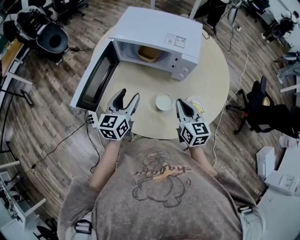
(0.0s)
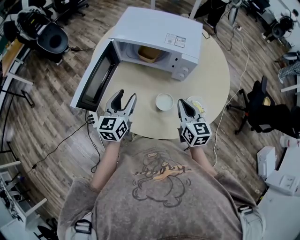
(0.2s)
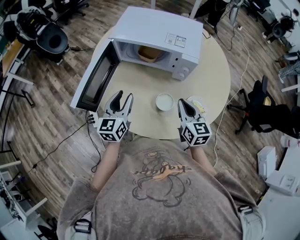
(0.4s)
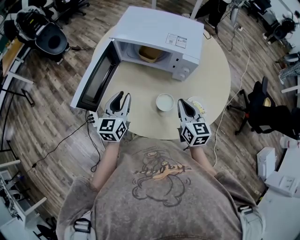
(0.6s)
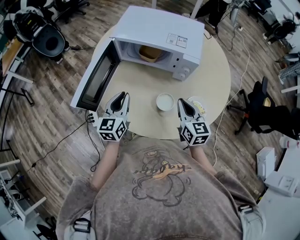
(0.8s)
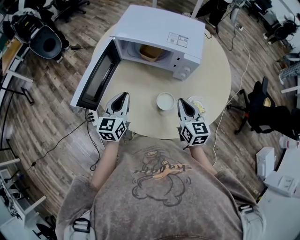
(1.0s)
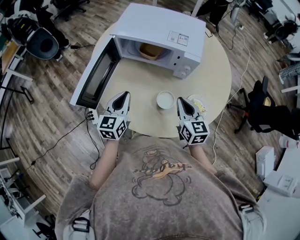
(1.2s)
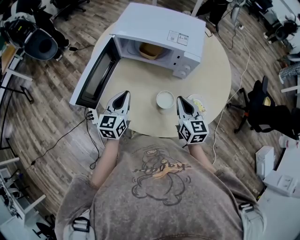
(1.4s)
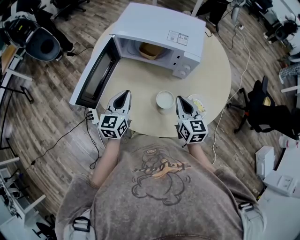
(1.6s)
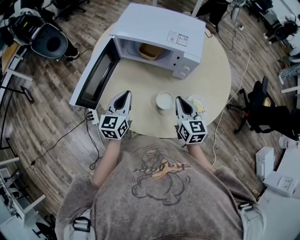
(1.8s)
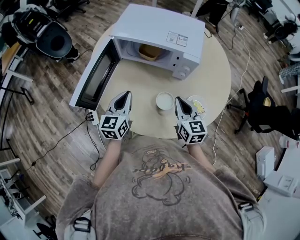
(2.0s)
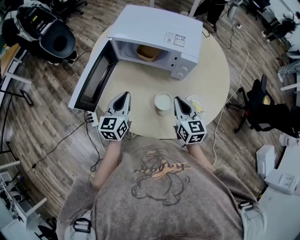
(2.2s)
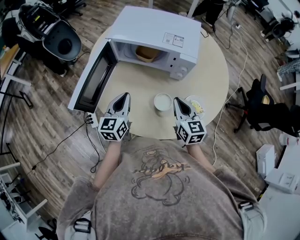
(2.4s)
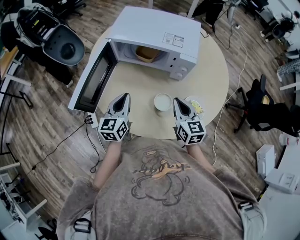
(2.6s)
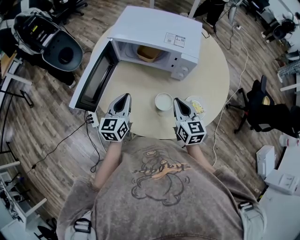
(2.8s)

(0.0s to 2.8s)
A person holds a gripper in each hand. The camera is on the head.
0.0s - 1.4s: The left gripper closes up.
1.4s - 2.8s: Neither gripper changes place.

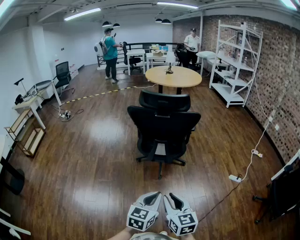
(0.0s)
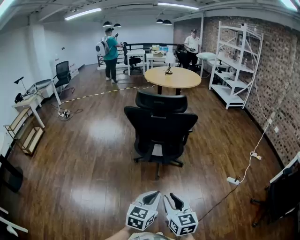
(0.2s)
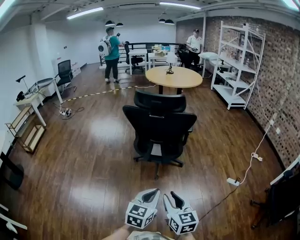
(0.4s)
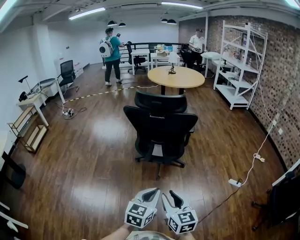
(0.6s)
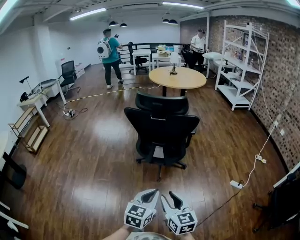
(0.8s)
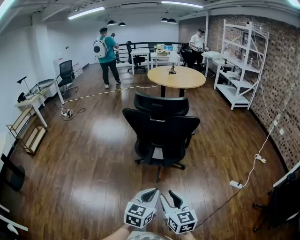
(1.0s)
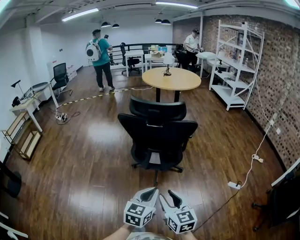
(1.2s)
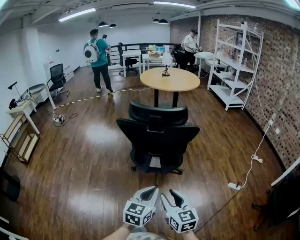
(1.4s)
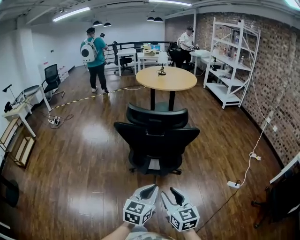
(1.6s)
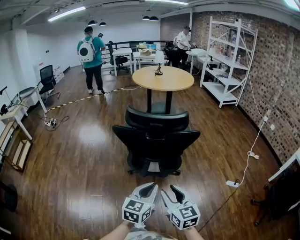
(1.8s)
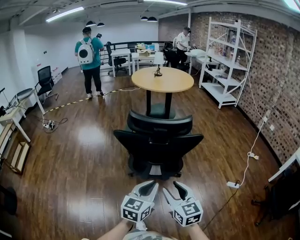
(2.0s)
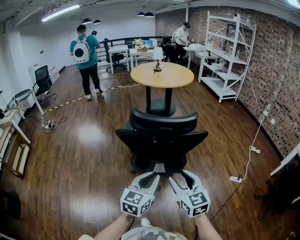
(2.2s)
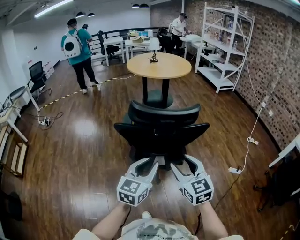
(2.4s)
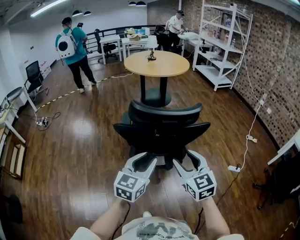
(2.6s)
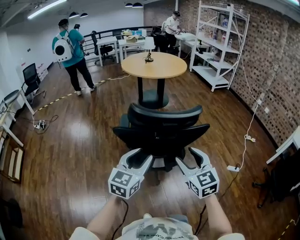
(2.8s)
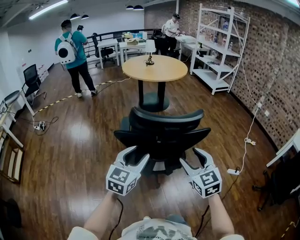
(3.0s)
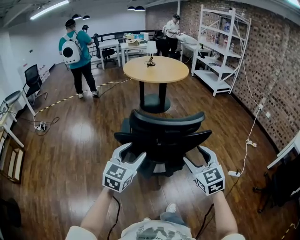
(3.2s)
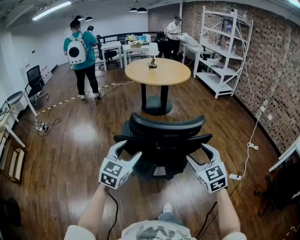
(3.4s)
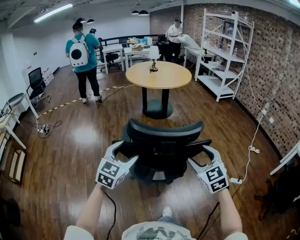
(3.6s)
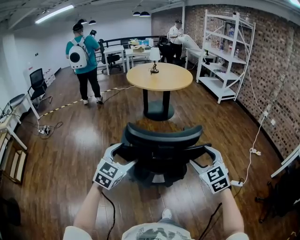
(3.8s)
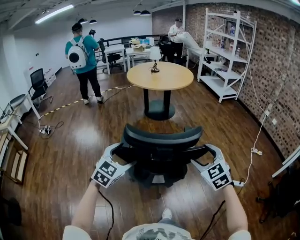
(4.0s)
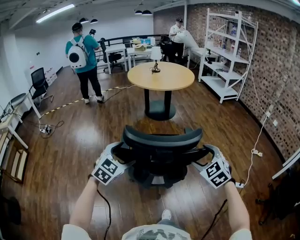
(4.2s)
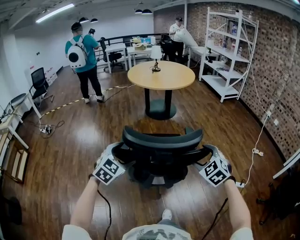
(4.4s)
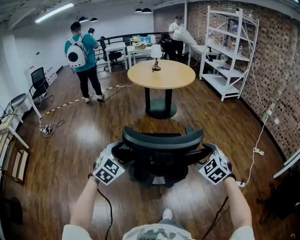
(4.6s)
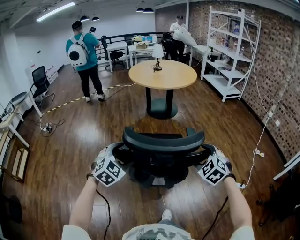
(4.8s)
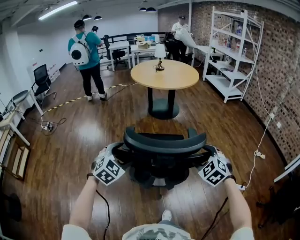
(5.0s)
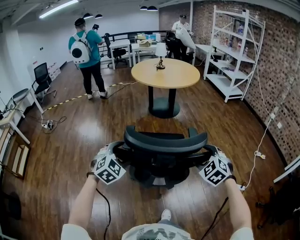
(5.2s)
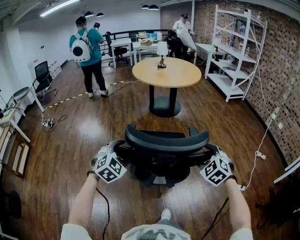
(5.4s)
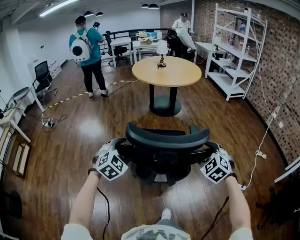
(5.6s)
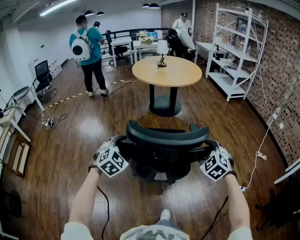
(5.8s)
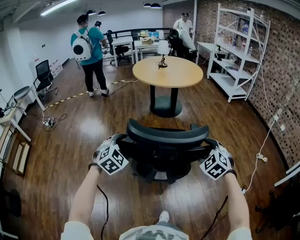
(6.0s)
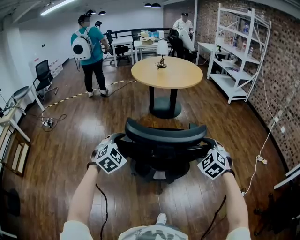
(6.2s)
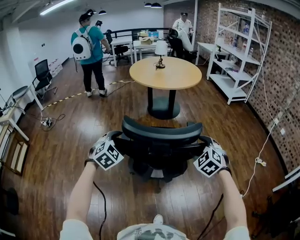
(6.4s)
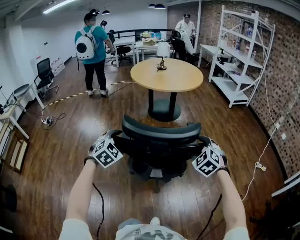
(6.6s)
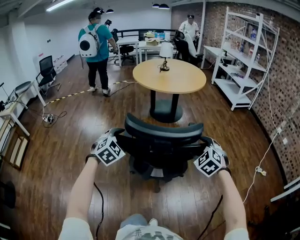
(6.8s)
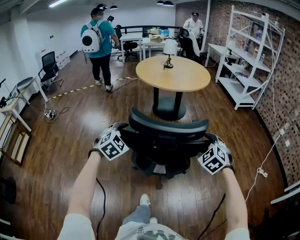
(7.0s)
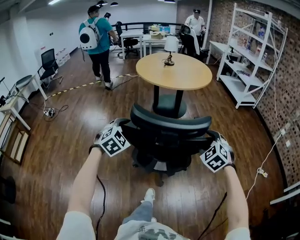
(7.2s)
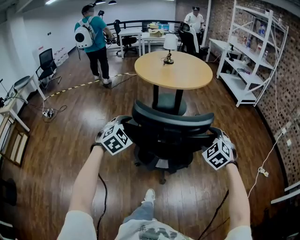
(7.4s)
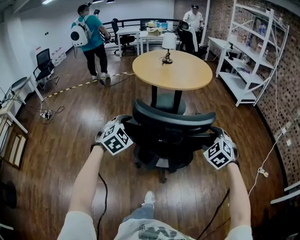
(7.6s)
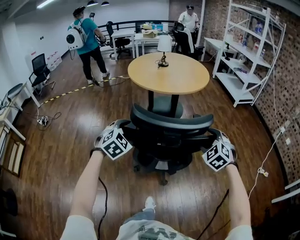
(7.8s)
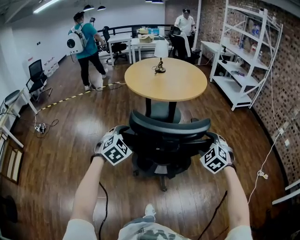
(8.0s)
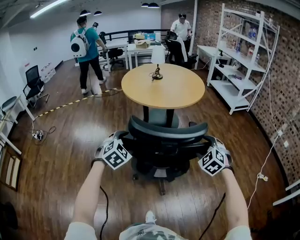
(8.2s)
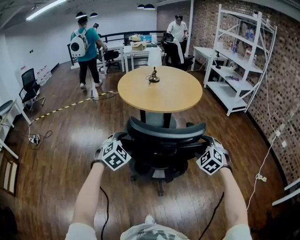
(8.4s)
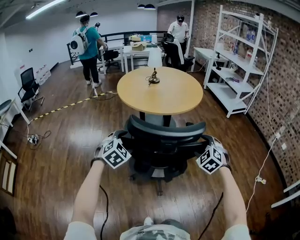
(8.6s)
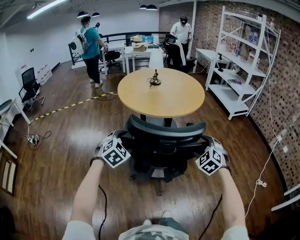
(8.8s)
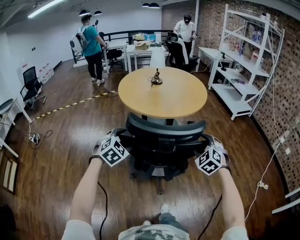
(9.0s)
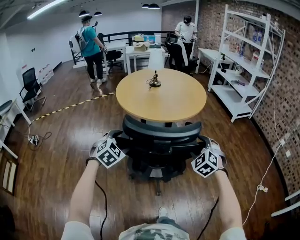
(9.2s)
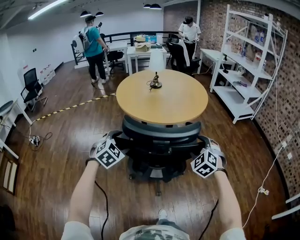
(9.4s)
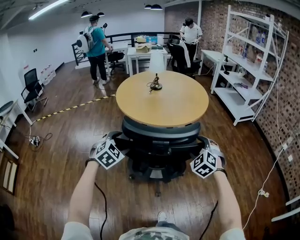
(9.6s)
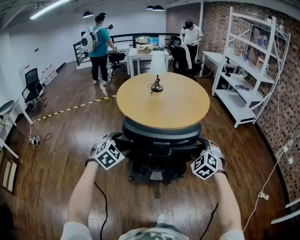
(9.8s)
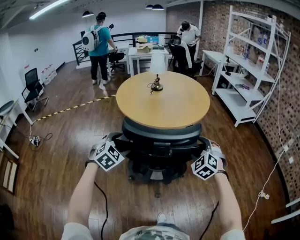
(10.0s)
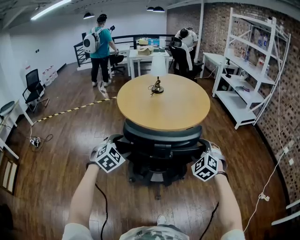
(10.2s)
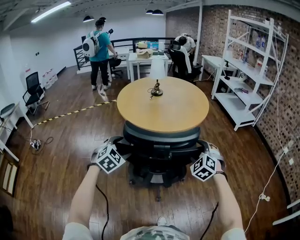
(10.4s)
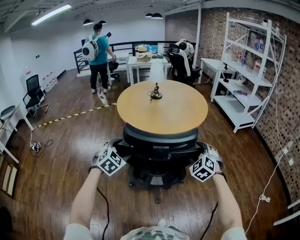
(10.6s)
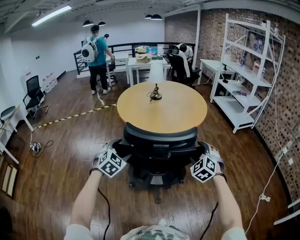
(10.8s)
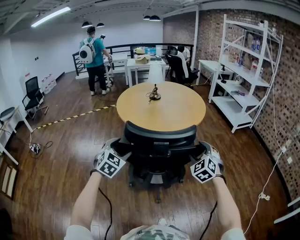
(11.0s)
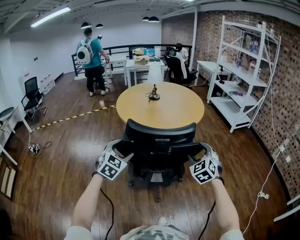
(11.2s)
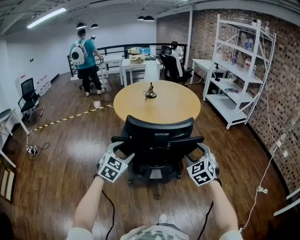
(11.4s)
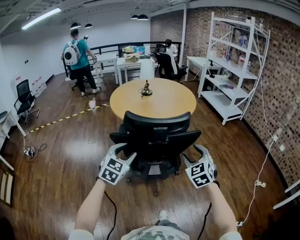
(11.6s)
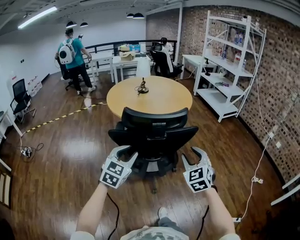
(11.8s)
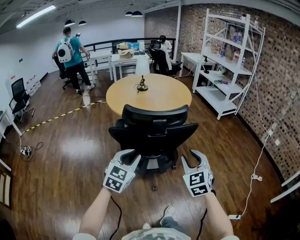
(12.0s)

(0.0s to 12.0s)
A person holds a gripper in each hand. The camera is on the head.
0.0s - 1.6s: Both grippers move forward, roughly 20 cm.
1.6s - 3.0s: The right gripper goes roughly 20 cm forward and upward, and swivels some 20 degrees. The left gripper moves forward and to the left, some 25 cm, and opens.
3.0s - 4.4s: The right gripper moves forward and to the right, roughly 15 cm, and changes its angle by roughly 30 degrees; the left gripper travels forward and to the left by approximately 10 cm, swivels about 30 degrees, and opens.
4.4s - 6.0s: Both grippers move forward, some 10 cm.
6.0s - 7.6s: Both grippers travel together forward, roughly 25 cm.
7.6s - 9.0s: Both grippers travel together forward, some 25 cm.
9.0s - 10.4s: The grippers both shift forward by approximately 10 cm.
10.4s - 12.0s: The left gripper heads backward and to the right, covering about 20 cm, turns by some 30 degrees, and closes up. Meanwhile the right gripper heads backward, covering roughly 20 cm, changes its angle by roughly 30 degrees, and closes its fingers.

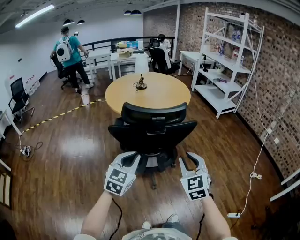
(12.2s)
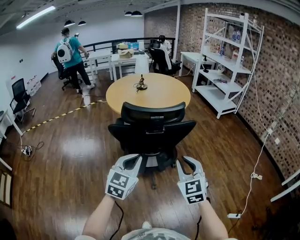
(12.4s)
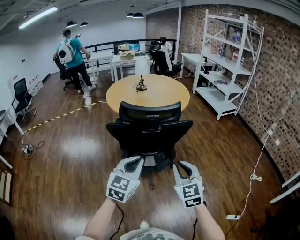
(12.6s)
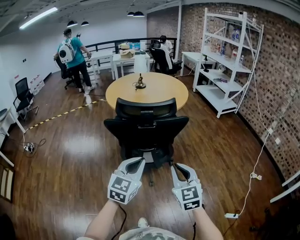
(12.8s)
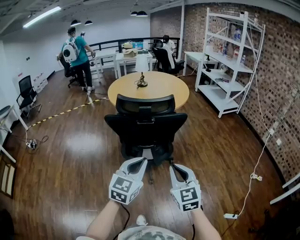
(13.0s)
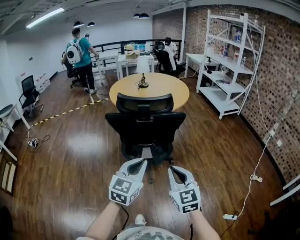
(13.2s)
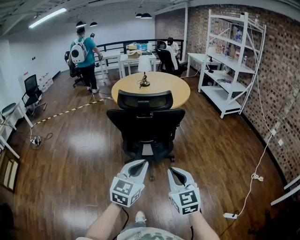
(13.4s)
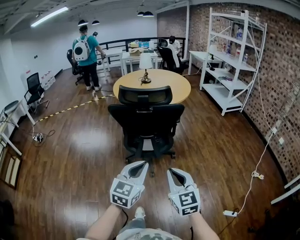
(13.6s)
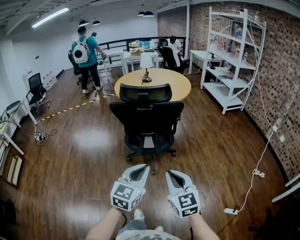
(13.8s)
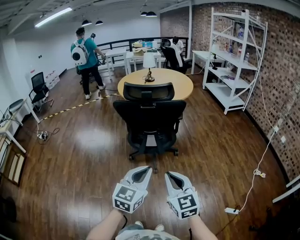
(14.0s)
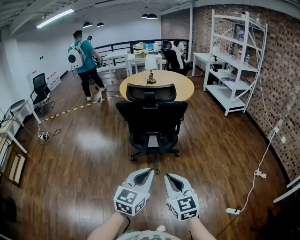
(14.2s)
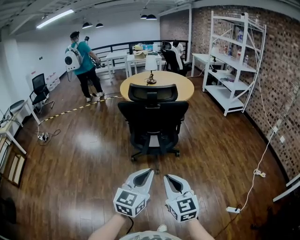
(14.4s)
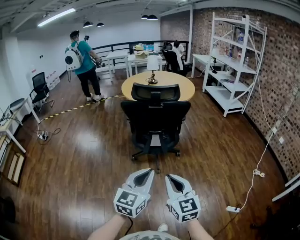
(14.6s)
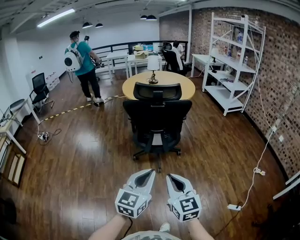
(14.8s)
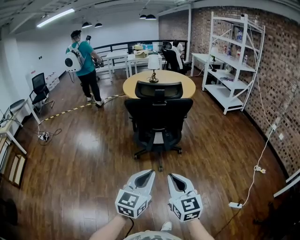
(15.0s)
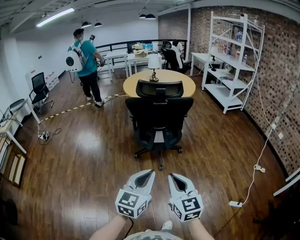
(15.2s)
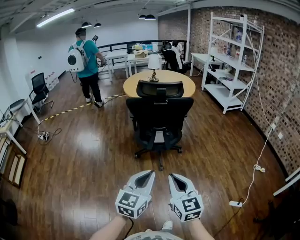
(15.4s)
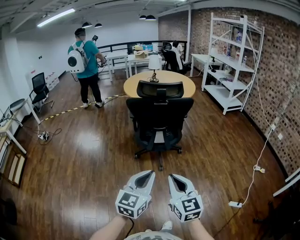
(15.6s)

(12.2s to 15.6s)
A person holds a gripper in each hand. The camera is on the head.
12.2s - 13.8s: The right gripper is displaced backward by some 25 cm, and swivels about 20 degrees, while the left gripper moves backward and to the right, approximately 30 cm.
13.8s - 15.6s: Both grippers travel together backward and to the left, about 15 cm.

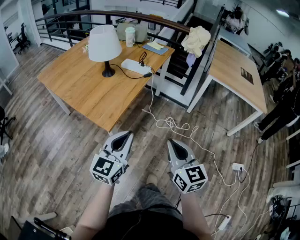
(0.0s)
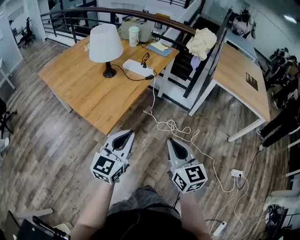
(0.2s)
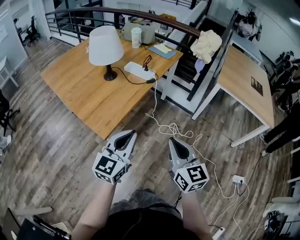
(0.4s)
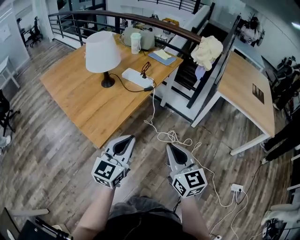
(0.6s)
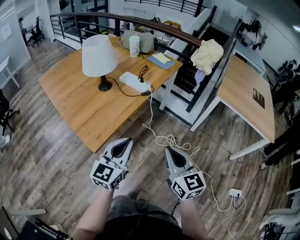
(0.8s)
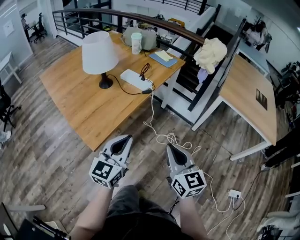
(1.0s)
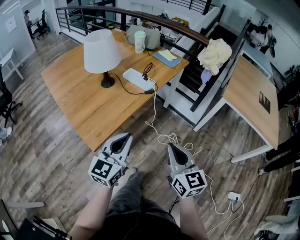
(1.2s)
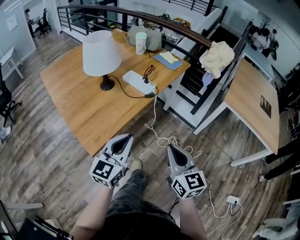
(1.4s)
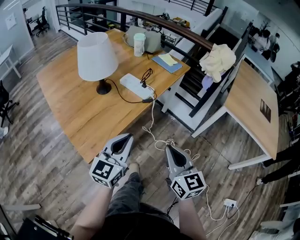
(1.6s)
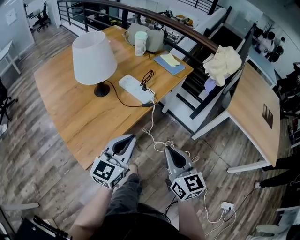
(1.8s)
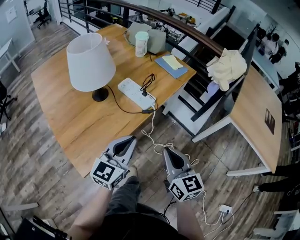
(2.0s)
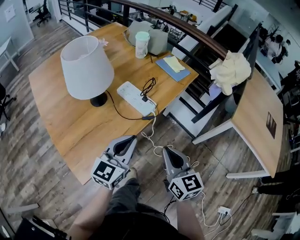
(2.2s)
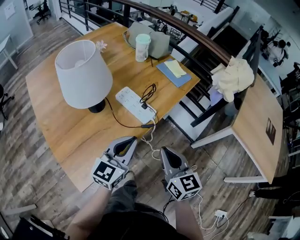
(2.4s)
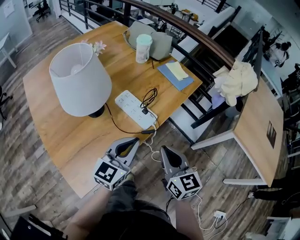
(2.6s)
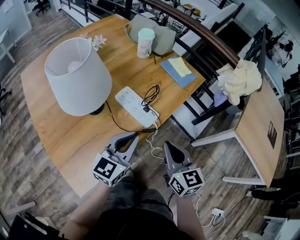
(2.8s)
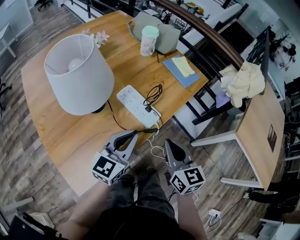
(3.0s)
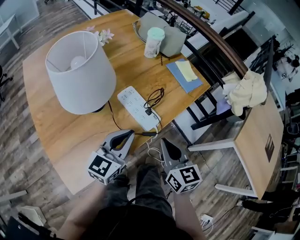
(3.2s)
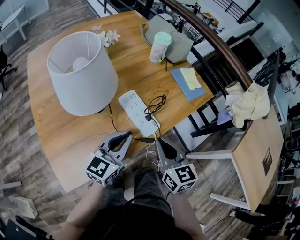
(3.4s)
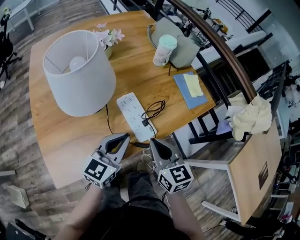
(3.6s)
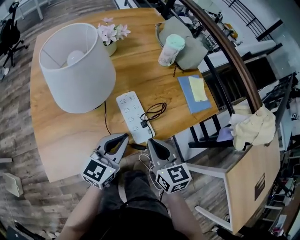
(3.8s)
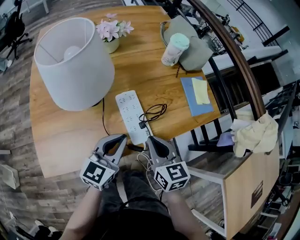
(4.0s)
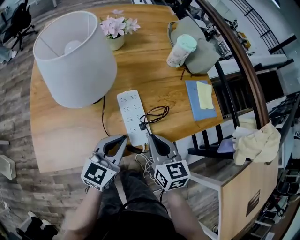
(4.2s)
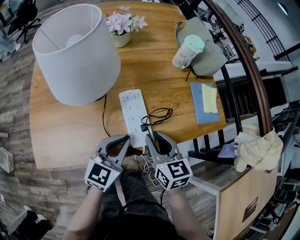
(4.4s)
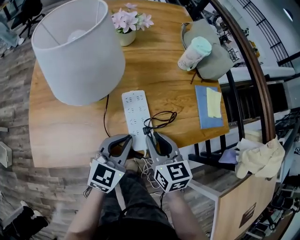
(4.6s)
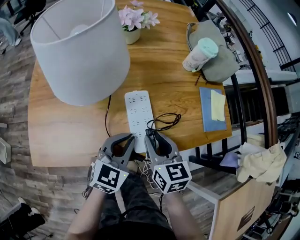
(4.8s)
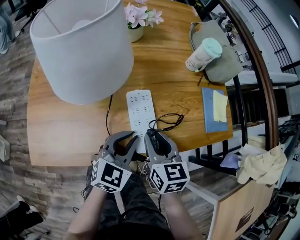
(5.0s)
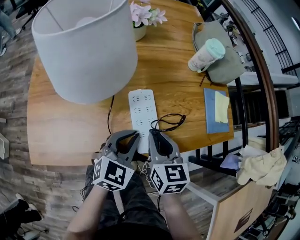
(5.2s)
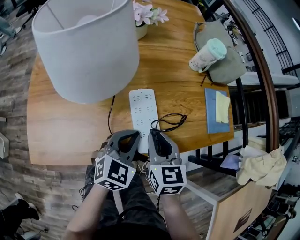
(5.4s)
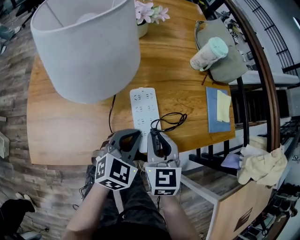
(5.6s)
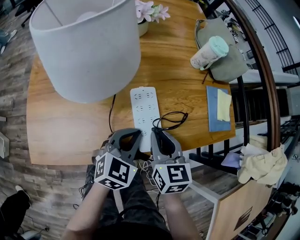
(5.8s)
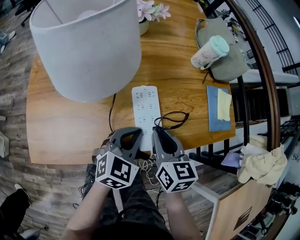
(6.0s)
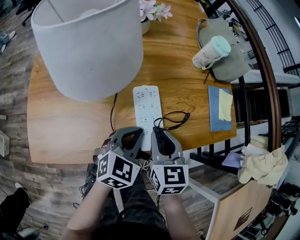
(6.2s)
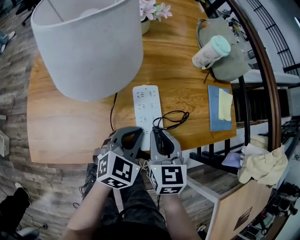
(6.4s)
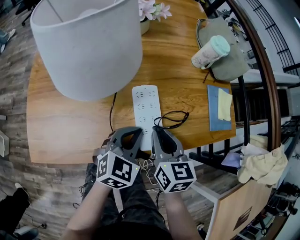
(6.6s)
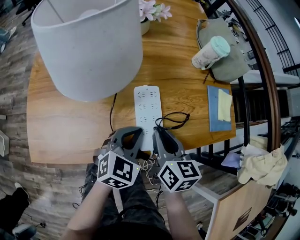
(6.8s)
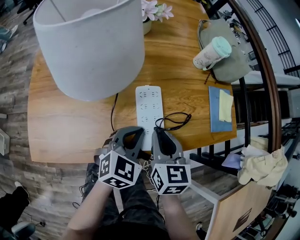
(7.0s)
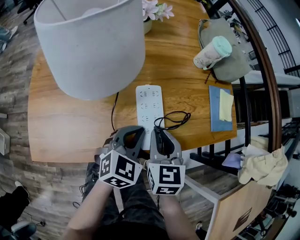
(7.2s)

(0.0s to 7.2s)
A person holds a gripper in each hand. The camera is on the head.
0.0s - 1.4s: Both grippers travel together forward, about 20 cm.
1.4s - 2.8s: The grippers both shift forward by about 25 cm.
2.8s - 4.4s: The right gripper changes place by some 15 cm, and turns by roughly 40 degrees. The left gripper travels downward by some 5 cm, and turns by some 30 degrees.
4.4s - 5.8s: The grippers make only small movements.
5.8s - 7.2s: There are only small adjustments of the grippers.
